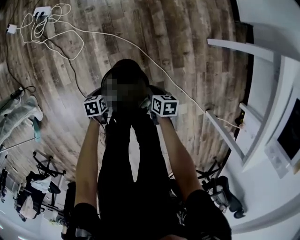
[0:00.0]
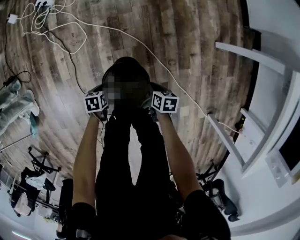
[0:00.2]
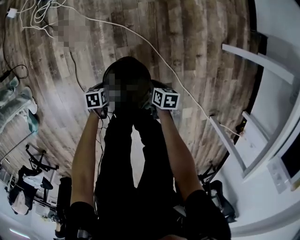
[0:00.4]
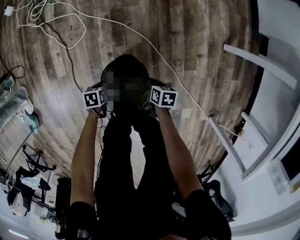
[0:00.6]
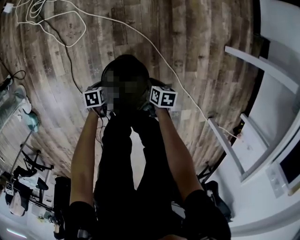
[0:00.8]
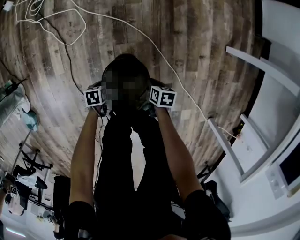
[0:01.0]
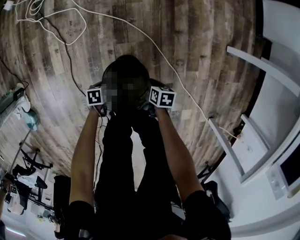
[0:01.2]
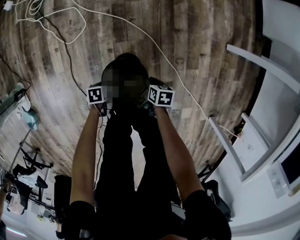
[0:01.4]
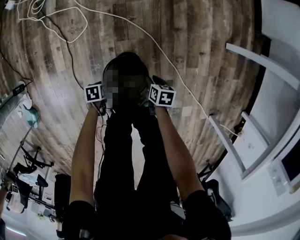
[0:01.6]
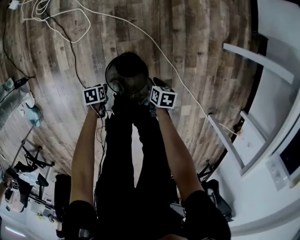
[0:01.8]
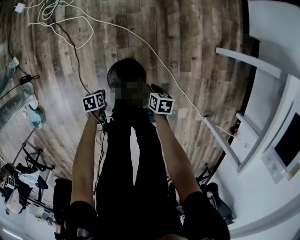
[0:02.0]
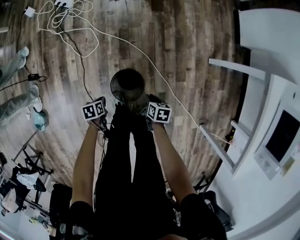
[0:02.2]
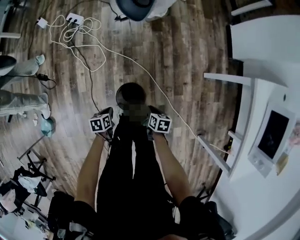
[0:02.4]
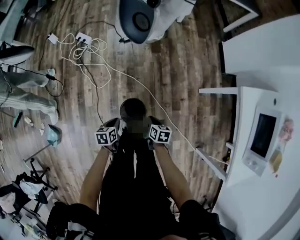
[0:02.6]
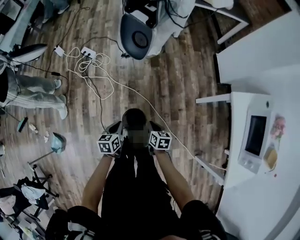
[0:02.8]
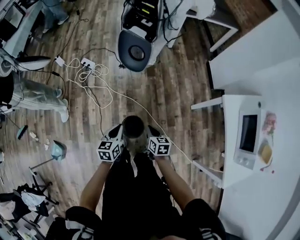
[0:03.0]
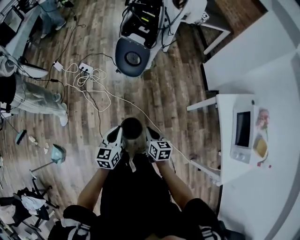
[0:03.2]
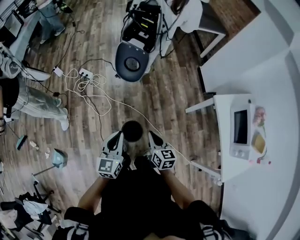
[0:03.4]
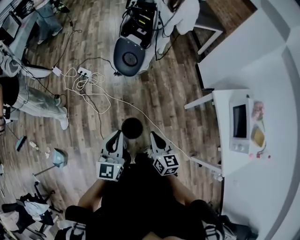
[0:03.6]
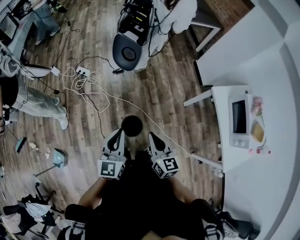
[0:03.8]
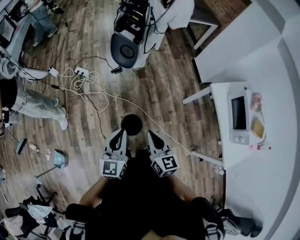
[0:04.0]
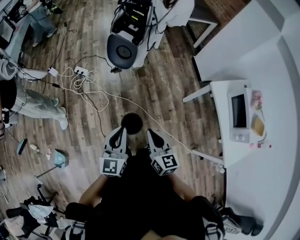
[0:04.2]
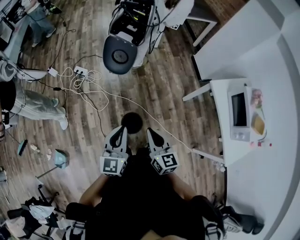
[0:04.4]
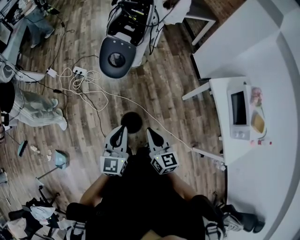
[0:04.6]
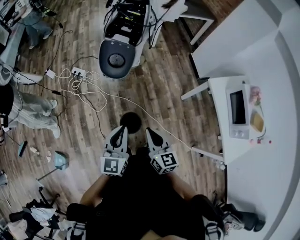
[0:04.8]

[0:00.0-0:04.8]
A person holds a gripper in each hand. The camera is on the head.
0.0 to 1.6 s: The grippers both shift downward by approximately 15 cm. The left gripper opens its fingers. Meanwhile the right gripper opens.
1.6 to 3.2 s: The grippers both shift upward by some 70 cm. The right gripper changes its angle by approximately 40 degrees, and closes up; the left gripper tips its fingers upward by approximately 50 degrees, and closes its fingers.
3.2 to 4.8 s: The right gripper moves upward and backward, approximately 20 cm, and changes its angle by some 20 degrees, while the left gripper shifts roughly 15 cm upward.

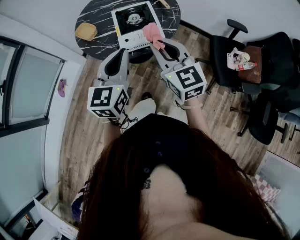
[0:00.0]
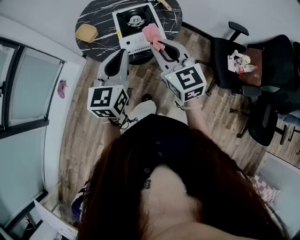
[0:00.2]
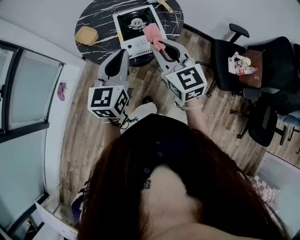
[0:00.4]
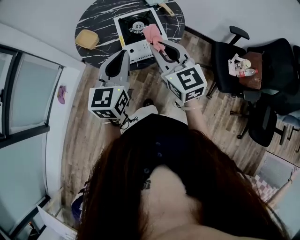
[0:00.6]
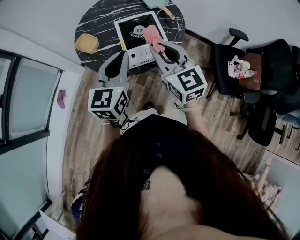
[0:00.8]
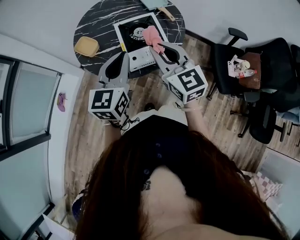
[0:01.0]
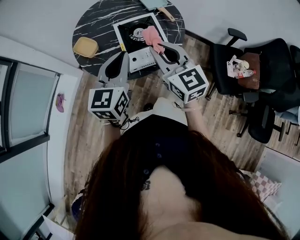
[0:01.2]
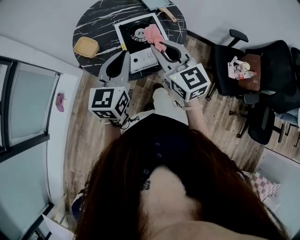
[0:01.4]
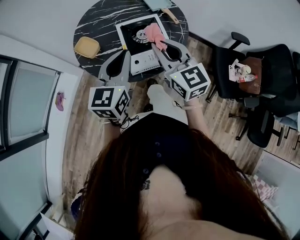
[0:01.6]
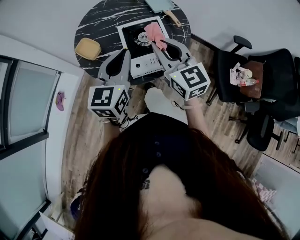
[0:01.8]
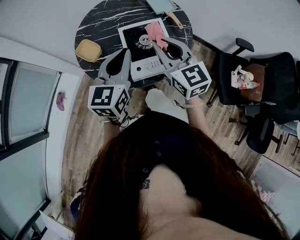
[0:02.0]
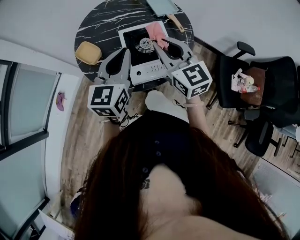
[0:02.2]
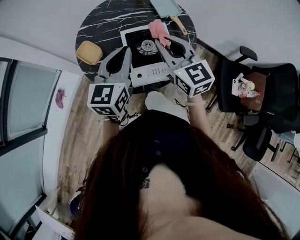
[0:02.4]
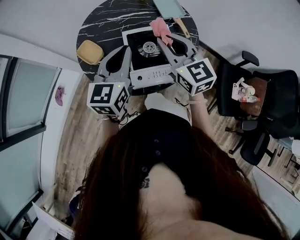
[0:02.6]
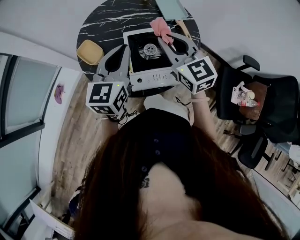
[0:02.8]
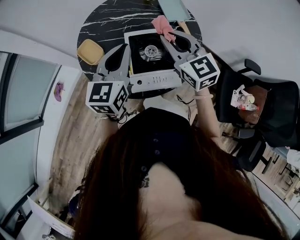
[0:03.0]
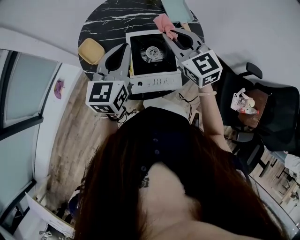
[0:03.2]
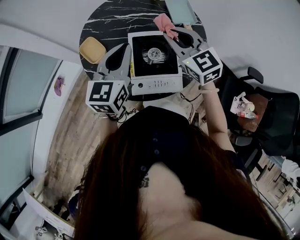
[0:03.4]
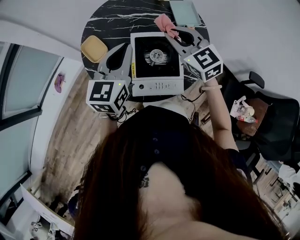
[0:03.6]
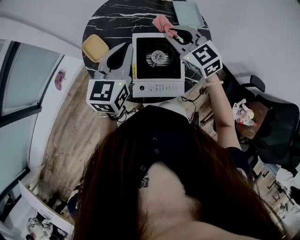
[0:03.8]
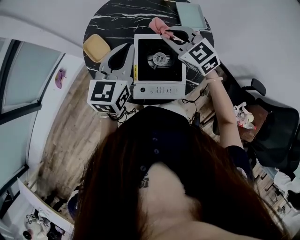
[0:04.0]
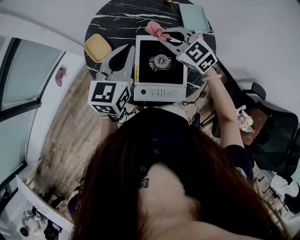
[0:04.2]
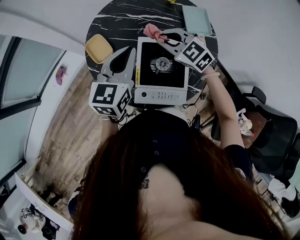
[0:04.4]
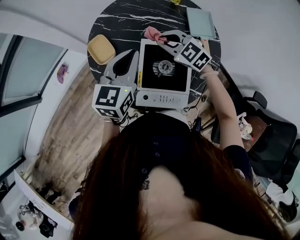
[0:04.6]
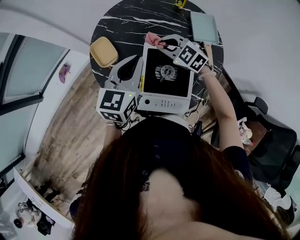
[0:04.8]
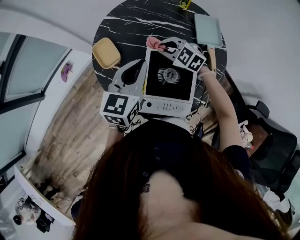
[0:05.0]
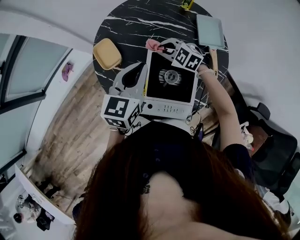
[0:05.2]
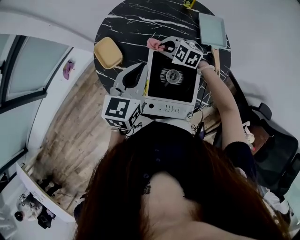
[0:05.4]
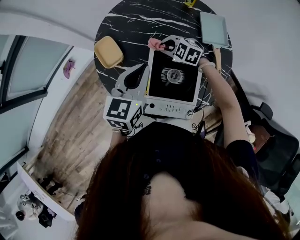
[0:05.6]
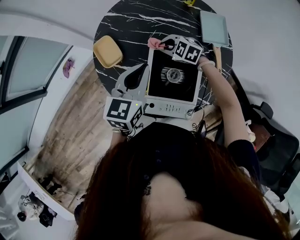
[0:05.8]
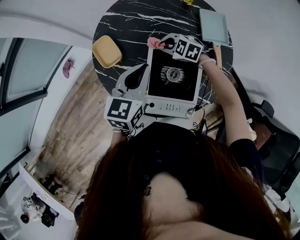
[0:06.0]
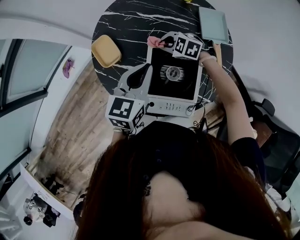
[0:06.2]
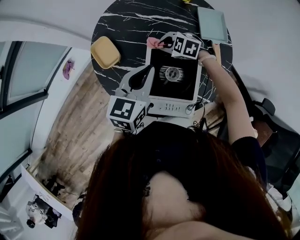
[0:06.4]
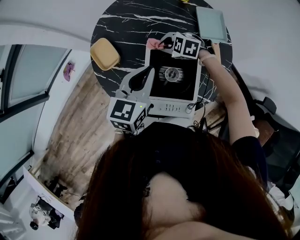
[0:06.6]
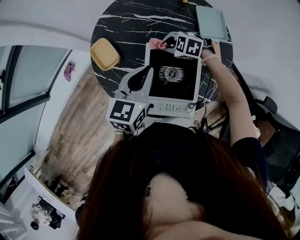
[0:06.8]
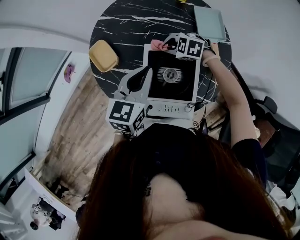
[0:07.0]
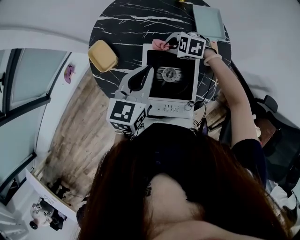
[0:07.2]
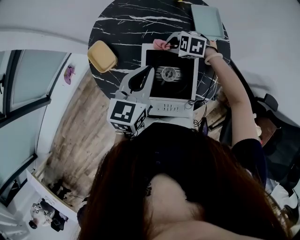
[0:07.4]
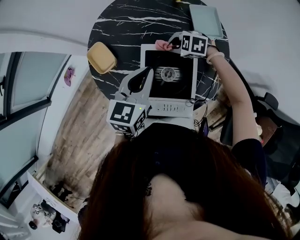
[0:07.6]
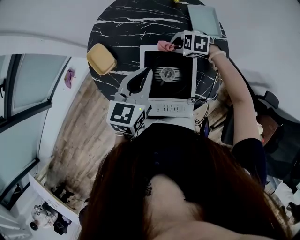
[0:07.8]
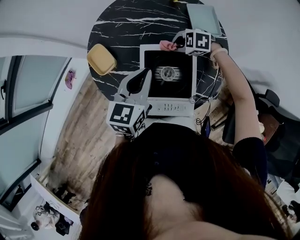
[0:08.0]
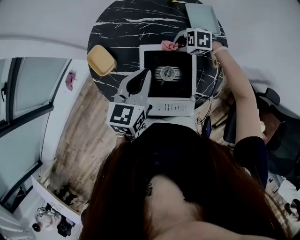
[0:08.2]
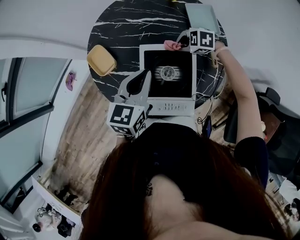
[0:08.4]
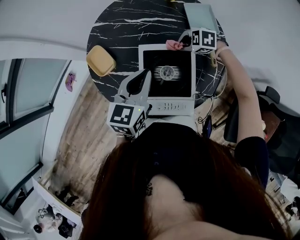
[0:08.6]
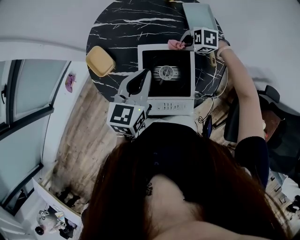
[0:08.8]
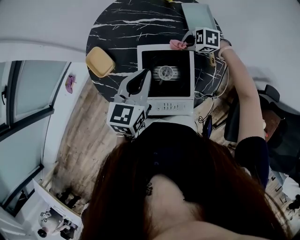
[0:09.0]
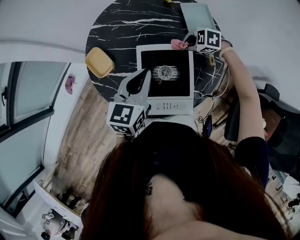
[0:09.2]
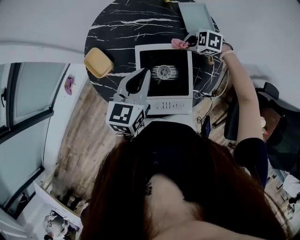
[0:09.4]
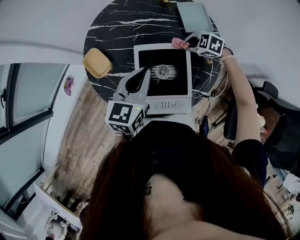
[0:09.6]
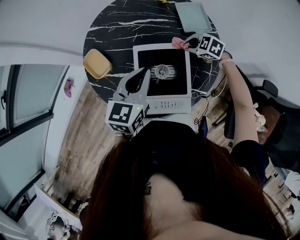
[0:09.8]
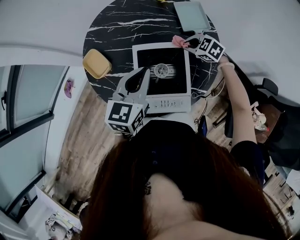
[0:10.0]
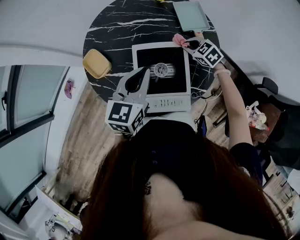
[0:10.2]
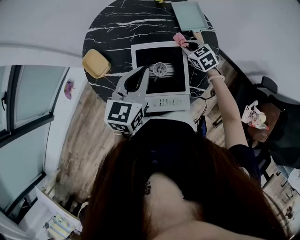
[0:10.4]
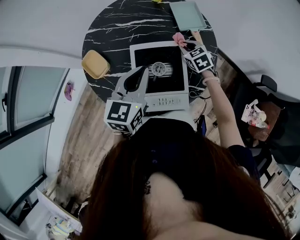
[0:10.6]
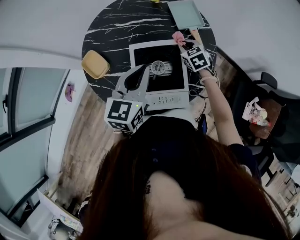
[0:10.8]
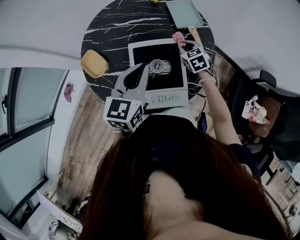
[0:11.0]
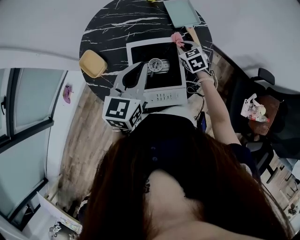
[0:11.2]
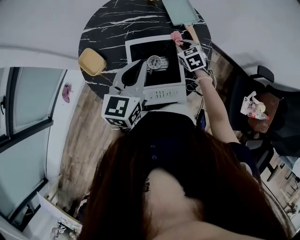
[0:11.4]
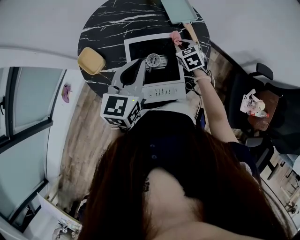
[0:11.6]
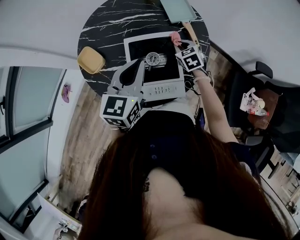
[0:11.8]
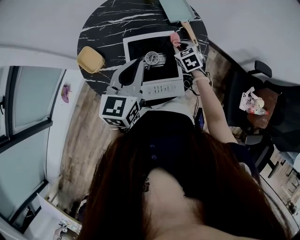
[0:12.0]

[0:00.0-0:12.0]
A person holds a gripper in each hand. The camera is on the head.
0.0 to 1.6 s: Both grippers move forward, approximately 15 cm.
1.6 to 3.0 s: Both grippers travel together forward, approximately 15 cm.
3.0 to 4.4 s: The left gripper shifts some 5 cm forward. Meanwhile the right gripper is displaced forward, downward and to the left by roughly 15 cm, and swivels some 40 degrees.
4.4 to 6.0 s: The right gripper shifts approximately 15 cm downward, and turns by approximately 30 degrees, while the left gripper moves downward, some 5 cm.
6.0 to 7.6 s: The right gripper is displaced to the right by about 5 cm.
7.6 to 9.0 s: The right gripper moves some 10 cm.
9.0 to 10.4 s: The right gripper swivels some 60 degrees.
10.4 to 12.0 s: The left gripper shifts by roughly 5 cm; the right gripper heads backward, covering approximately 5 cm.

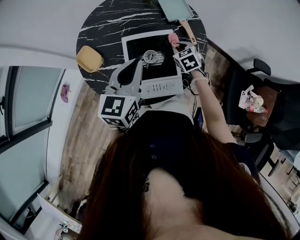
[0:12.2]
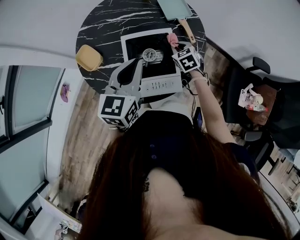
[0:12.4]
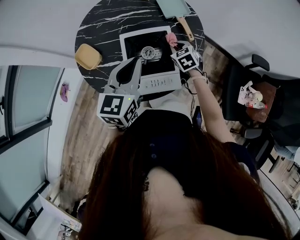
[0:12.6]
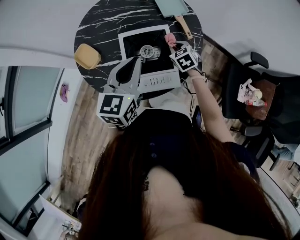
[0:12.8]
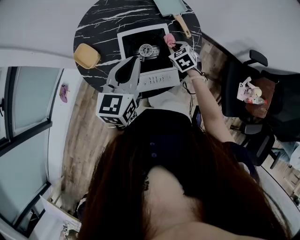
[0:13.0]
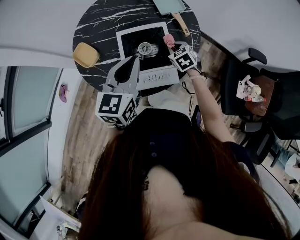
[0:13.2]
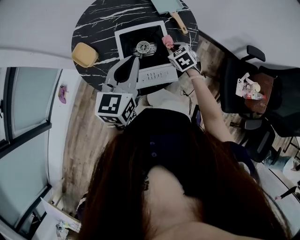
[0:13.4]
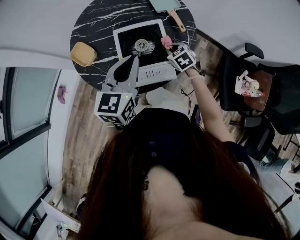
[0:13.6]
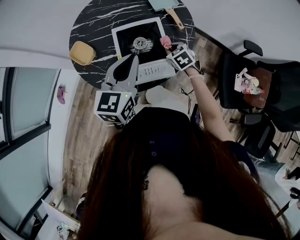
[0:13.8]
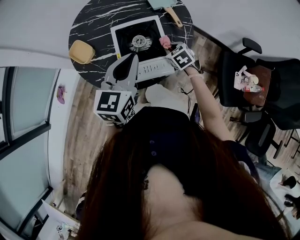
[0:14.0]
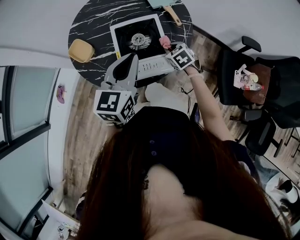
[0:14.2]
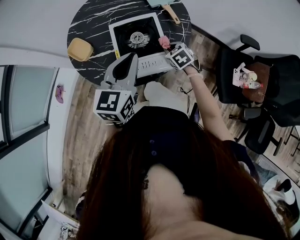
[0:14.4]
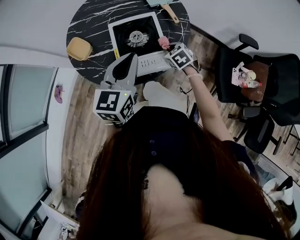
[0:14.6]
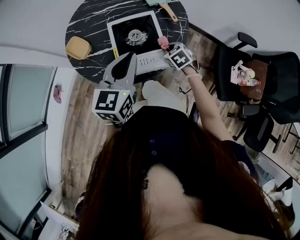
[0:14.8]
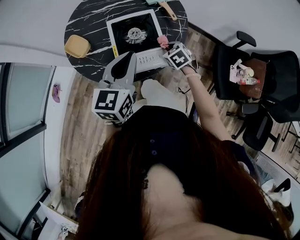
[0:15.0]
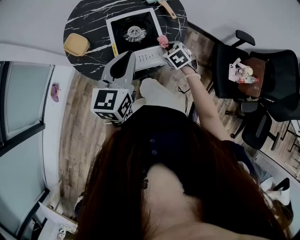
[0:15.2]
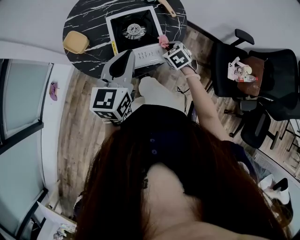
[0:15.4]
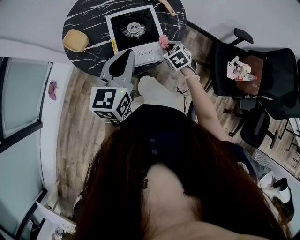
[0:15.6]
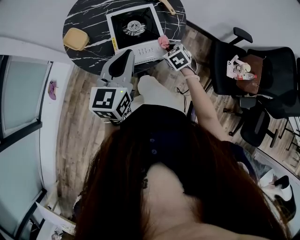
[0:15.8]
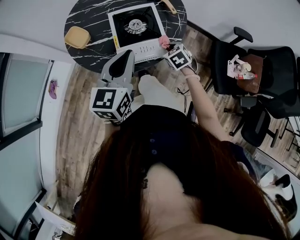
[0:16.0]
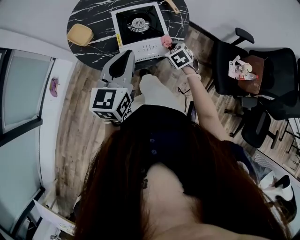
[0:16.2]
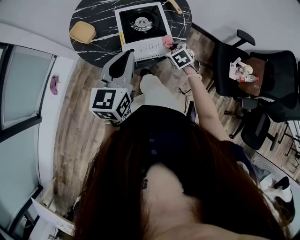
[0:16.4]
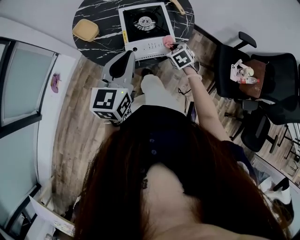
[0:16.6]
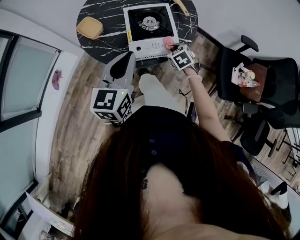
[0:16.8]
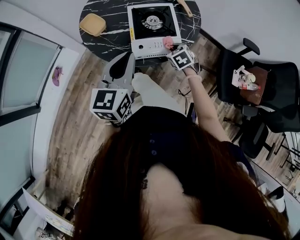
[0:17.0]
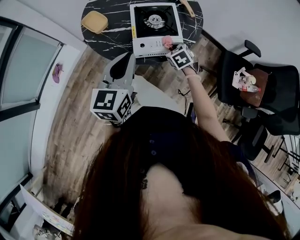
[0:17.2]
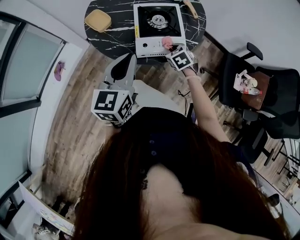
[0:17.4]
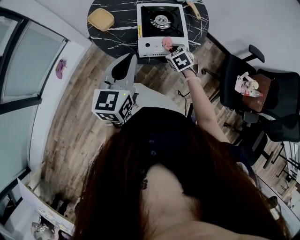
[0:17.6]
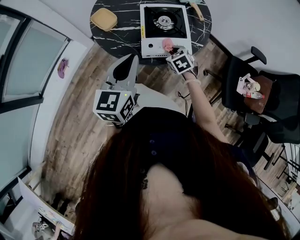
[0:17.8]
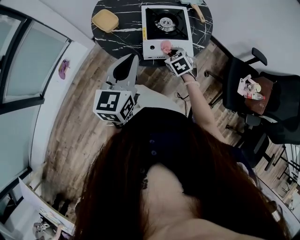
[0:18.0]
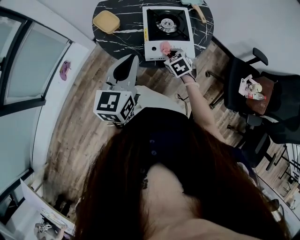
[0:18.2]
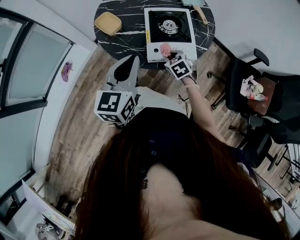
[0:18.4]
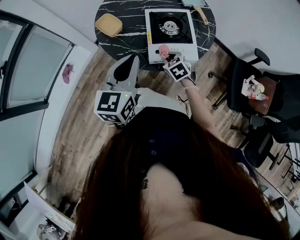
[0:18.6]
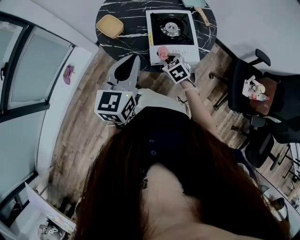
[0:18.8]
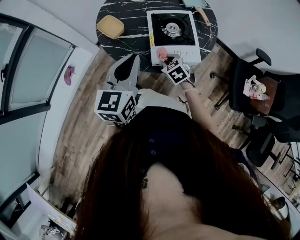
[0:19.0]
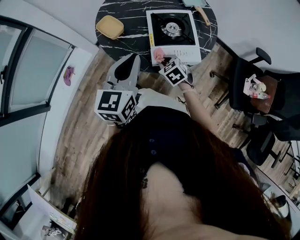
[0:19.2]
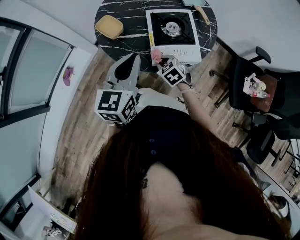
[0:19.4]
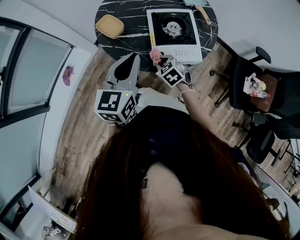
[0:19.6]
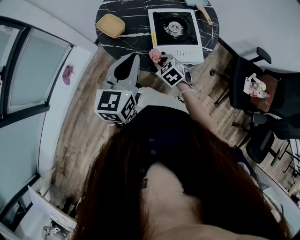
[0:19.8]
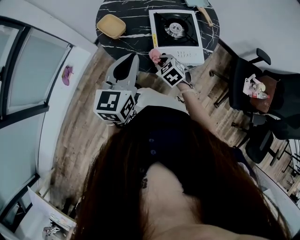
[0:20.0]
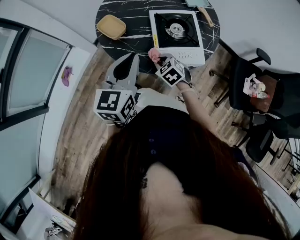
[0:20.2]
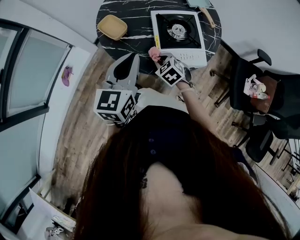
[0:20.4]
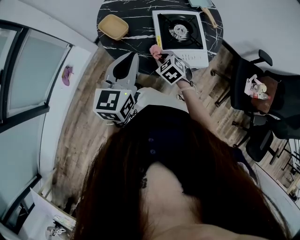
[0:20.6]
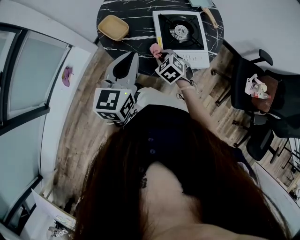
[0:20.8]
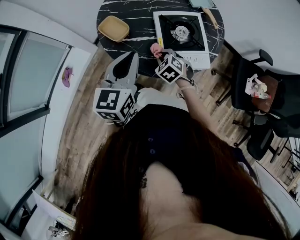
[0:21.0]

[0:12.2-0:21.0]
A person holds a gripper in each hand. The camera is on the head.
12.2 to 13.6 s: The right gripper moves backward, some 10 cm. The left gripper is displaced backward by roughly 5 cm.
13.6 to 15.2 s: The grippers both shift backward by about 5 cm.
15.2 to 16.6 s: The left gripper shifts roughly 10 cm backward and to the left; the right gripper travels backward by about 5 cm.
16.6 to 18.0 s: The left gripper heads to the left, covering roughly 5 cm, while the right gripper travels to the left by roughly 10 cm.
18.0 to 19.6 s: The right gripper heads to the left, covering some 10 cm, while the left gripper ends up roughly 5 cm from where it was.
19.6 to 21.0 s: The grippers both shift forward by approximately 5 cm.
